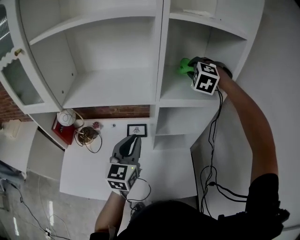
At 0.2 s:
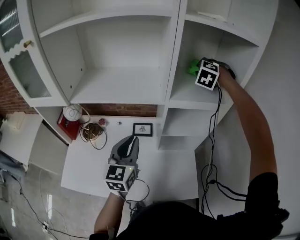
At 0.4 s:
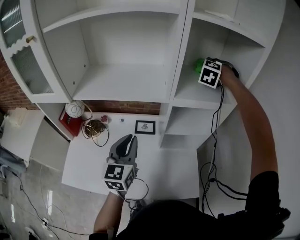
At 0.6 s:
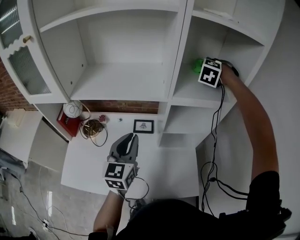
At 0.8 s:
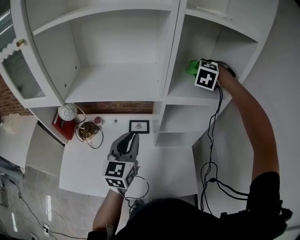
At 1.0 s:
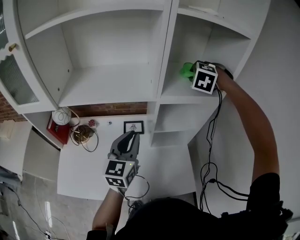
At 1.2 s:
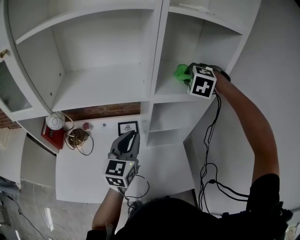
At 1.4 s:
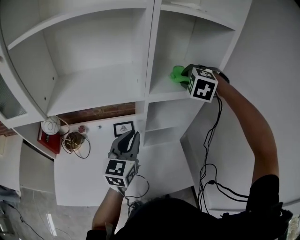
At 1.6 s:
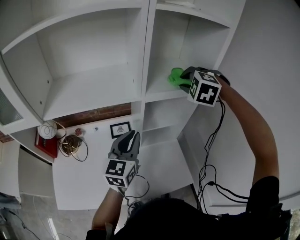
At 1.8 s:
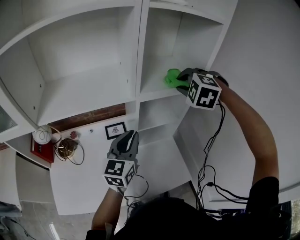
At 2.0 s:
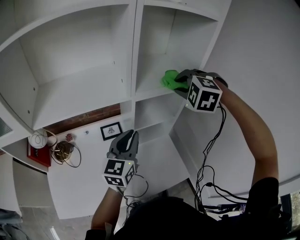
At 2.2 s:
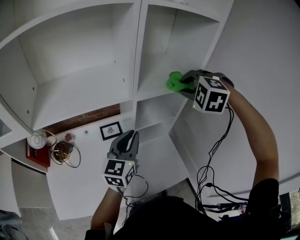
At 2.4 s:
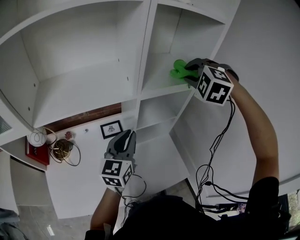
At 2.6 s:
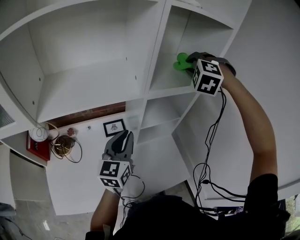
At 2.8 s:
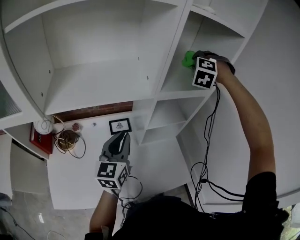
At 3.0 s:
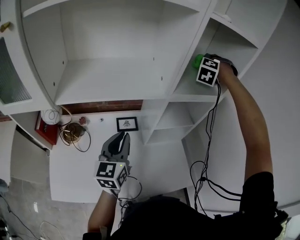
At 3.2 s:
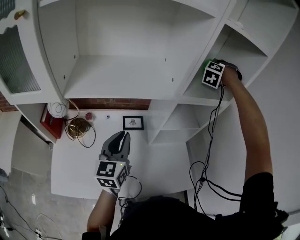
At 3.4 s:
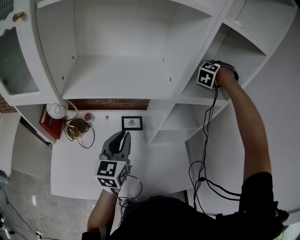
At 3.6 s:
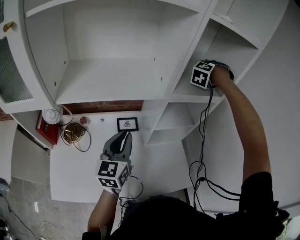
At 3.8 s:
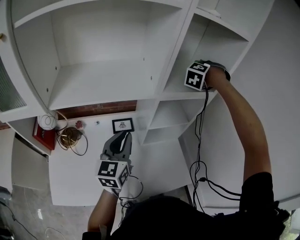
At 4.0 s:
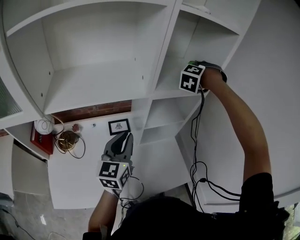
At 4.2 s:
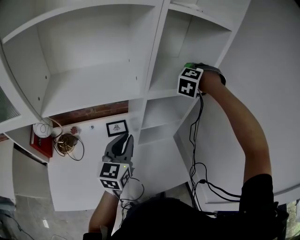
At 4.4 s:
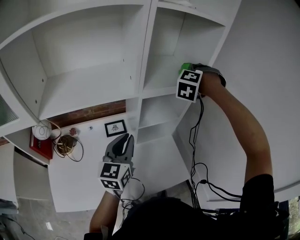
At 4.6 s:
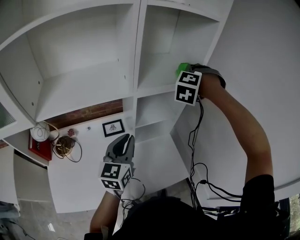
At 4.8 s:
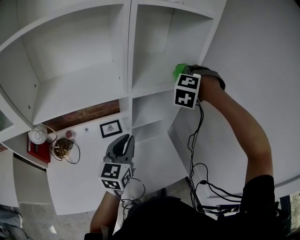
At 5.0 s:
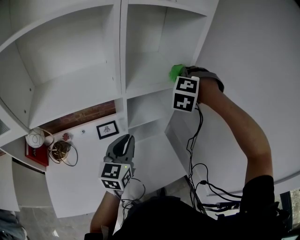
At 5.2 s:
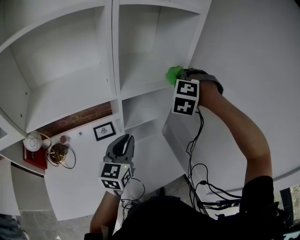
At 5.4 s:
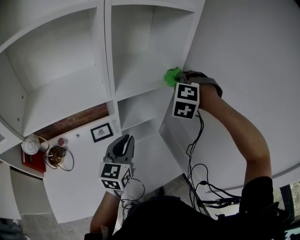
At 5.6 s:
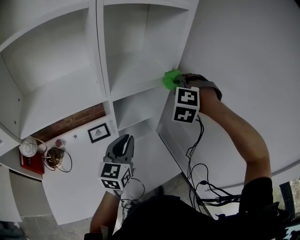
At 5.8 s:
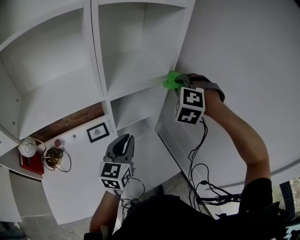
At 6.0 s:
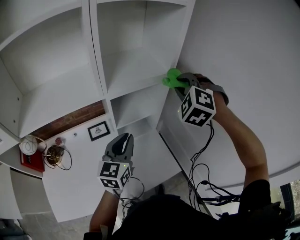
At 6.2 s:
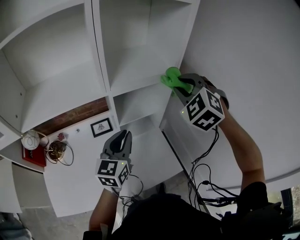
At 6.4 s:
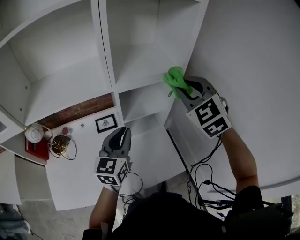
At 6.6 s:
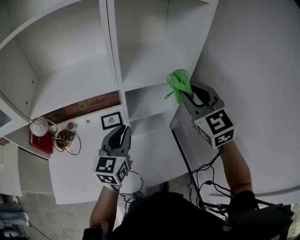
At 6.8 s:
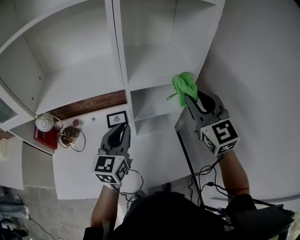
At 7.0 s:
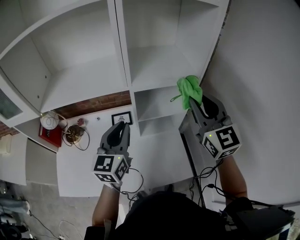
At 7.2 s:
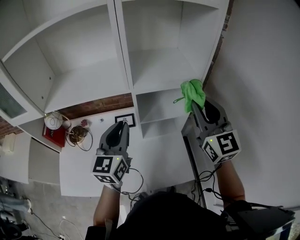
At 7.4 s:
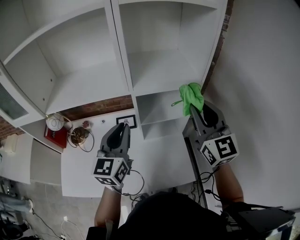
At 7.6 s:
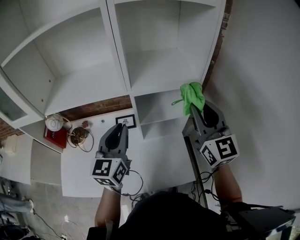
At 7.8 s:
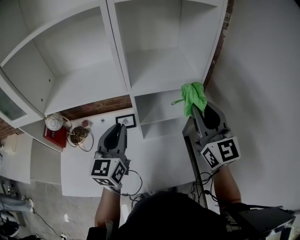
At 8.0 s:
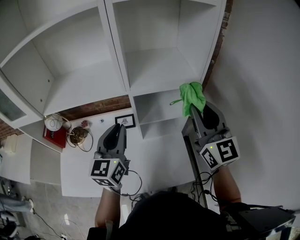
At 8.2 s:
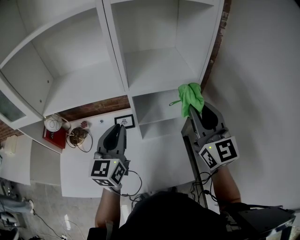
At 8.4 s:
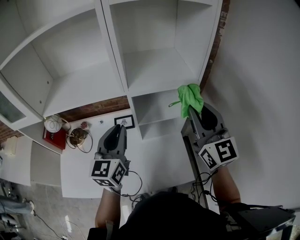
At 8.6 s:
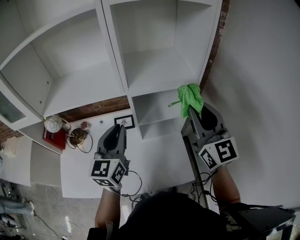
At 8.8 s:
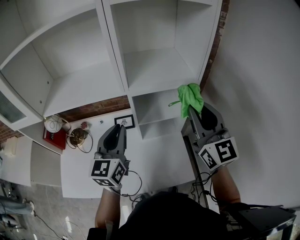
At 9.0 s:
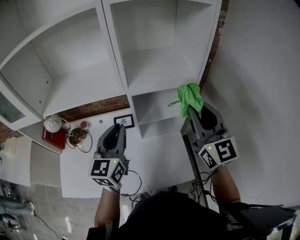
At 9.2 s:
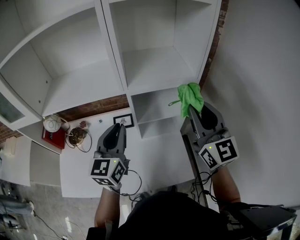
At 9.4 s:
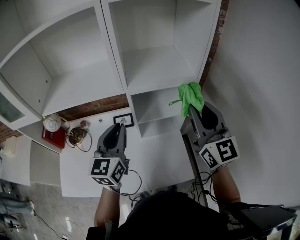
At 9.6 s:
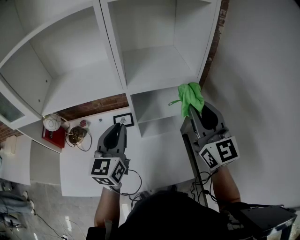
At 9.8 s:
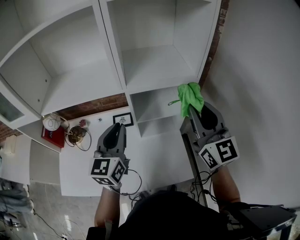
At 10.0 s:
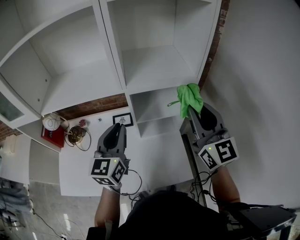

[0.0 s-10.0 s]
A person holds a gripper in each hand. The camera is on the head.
0.0 to 1.4 s: The right gripper moves backward, approximately 5 cm.
1.4 to 2.8 s: The left gripper is displaced to the left by roughly 5 cm; the right gripper is displaced forward by about 5 cm, and swivels roughly 20 degrees.
2.8 to 4.2 s: The right gripper heads to the right, covering some 5 cm, and travels forward and back again, roughly 5 cm each way.
4.2 to 5.8 s: The right gripper is displaced to the right and backward by approximately 10 cm. Meanwhile the left gripper shifts approximately 10 cm to the right and forward.
5.8 to 7.2 s: The left gripper changes place by some 10 cm, and changes its angle by roughly 20 degrees. Meanwhile the right gripper moves approximately 10 cm, and angles its fingers upward, by approximately 40 degrees.
7.2 to 8.6 s: The grippers move only a little.
8.6 to 10.0 s: Both grippers stay about where they are.

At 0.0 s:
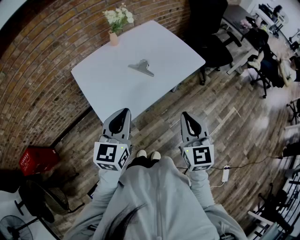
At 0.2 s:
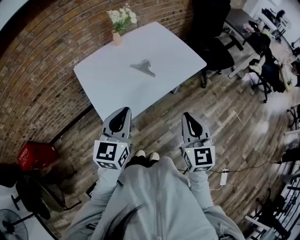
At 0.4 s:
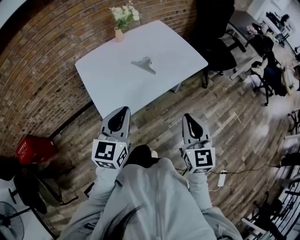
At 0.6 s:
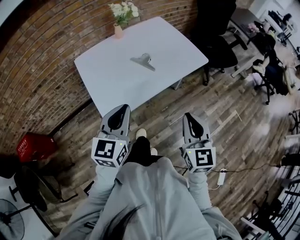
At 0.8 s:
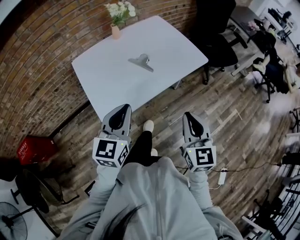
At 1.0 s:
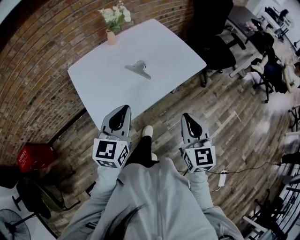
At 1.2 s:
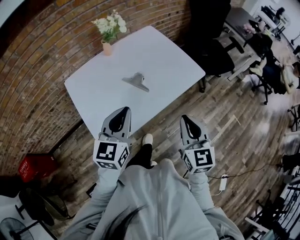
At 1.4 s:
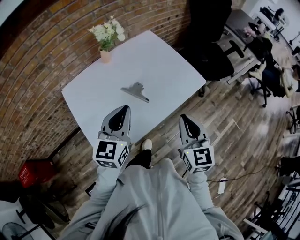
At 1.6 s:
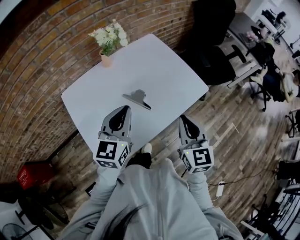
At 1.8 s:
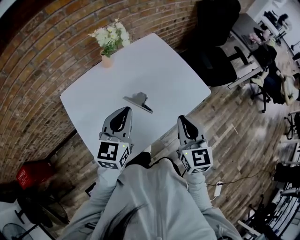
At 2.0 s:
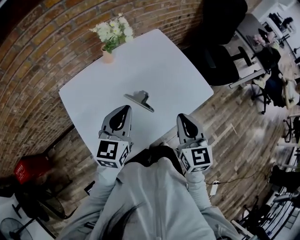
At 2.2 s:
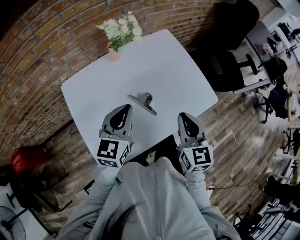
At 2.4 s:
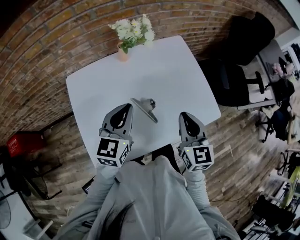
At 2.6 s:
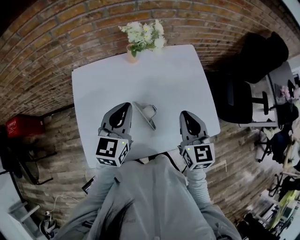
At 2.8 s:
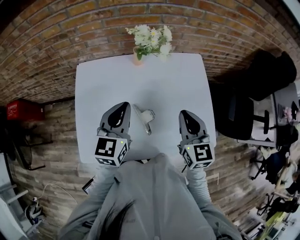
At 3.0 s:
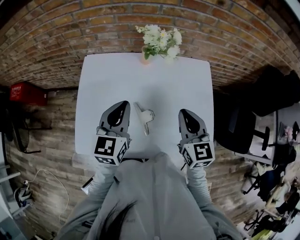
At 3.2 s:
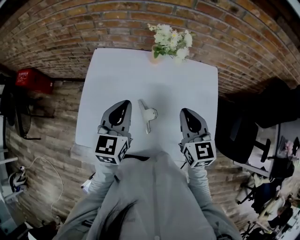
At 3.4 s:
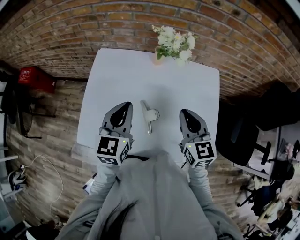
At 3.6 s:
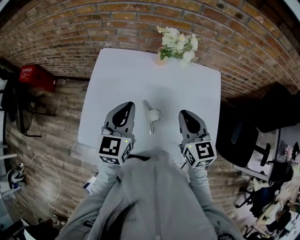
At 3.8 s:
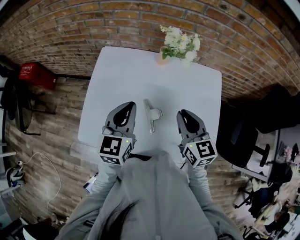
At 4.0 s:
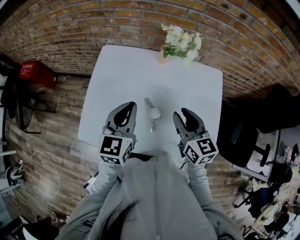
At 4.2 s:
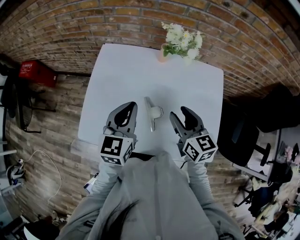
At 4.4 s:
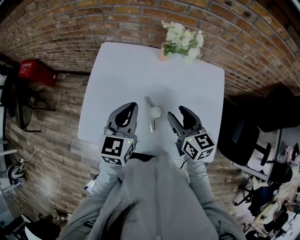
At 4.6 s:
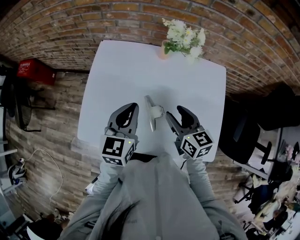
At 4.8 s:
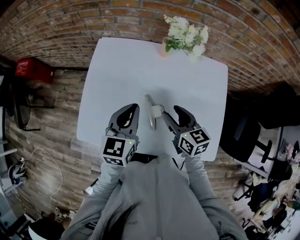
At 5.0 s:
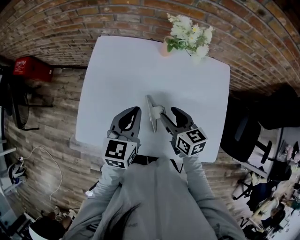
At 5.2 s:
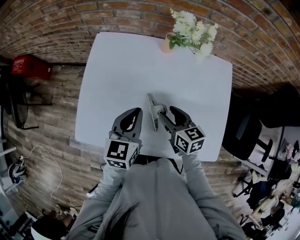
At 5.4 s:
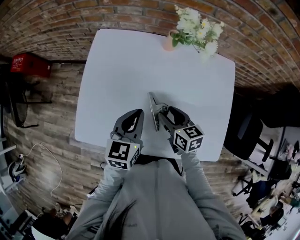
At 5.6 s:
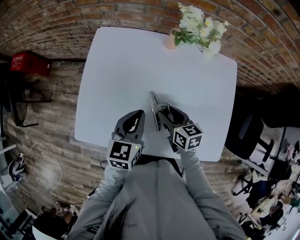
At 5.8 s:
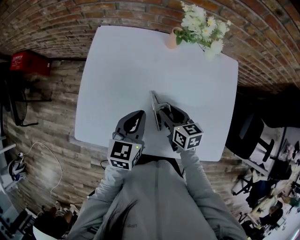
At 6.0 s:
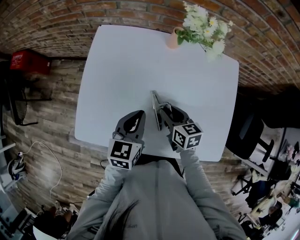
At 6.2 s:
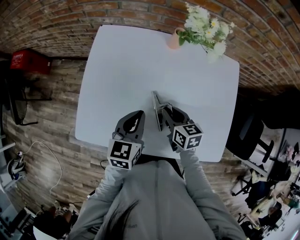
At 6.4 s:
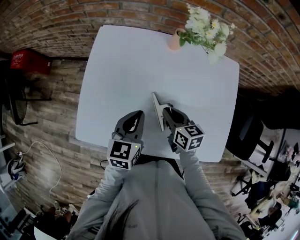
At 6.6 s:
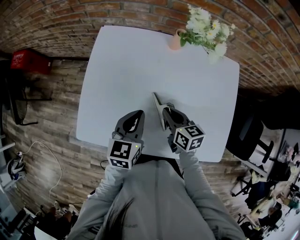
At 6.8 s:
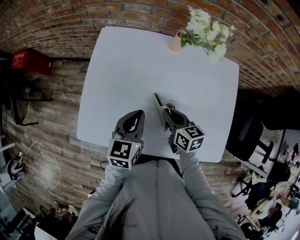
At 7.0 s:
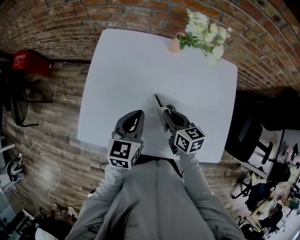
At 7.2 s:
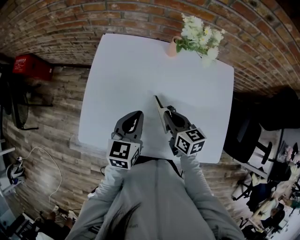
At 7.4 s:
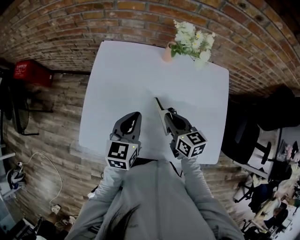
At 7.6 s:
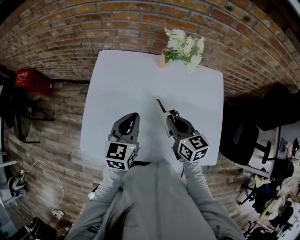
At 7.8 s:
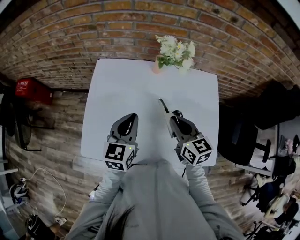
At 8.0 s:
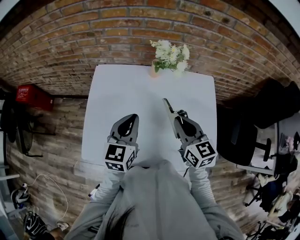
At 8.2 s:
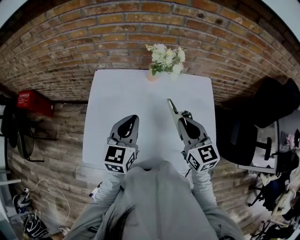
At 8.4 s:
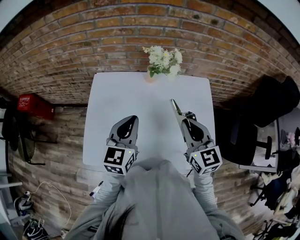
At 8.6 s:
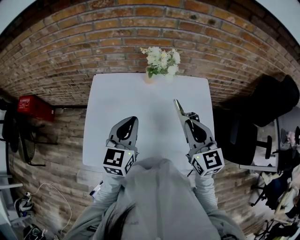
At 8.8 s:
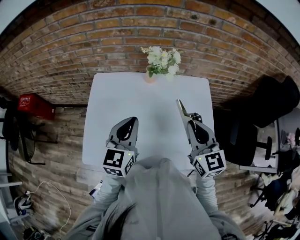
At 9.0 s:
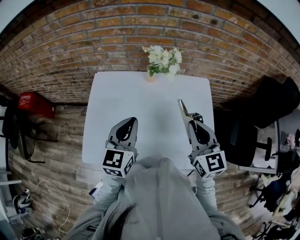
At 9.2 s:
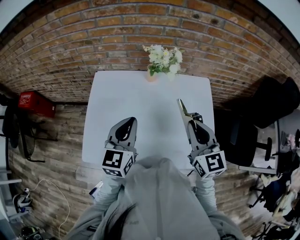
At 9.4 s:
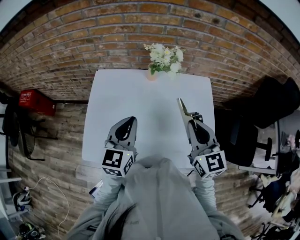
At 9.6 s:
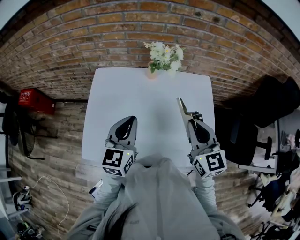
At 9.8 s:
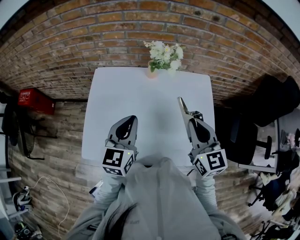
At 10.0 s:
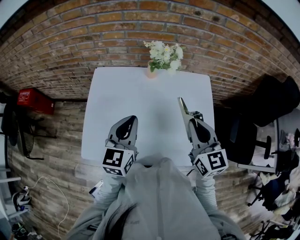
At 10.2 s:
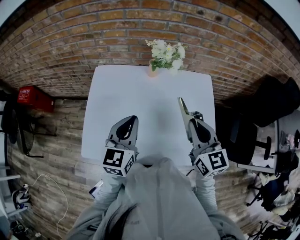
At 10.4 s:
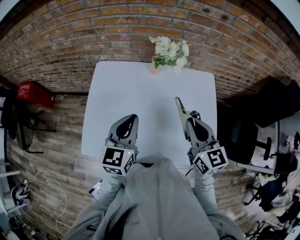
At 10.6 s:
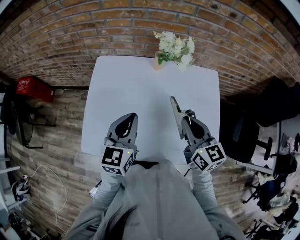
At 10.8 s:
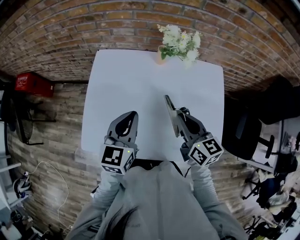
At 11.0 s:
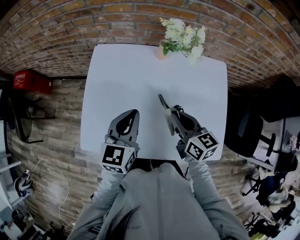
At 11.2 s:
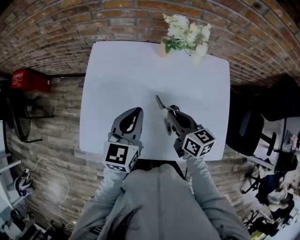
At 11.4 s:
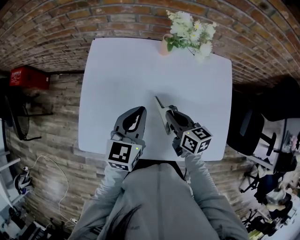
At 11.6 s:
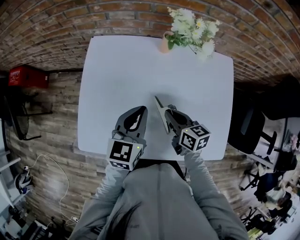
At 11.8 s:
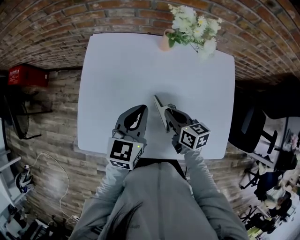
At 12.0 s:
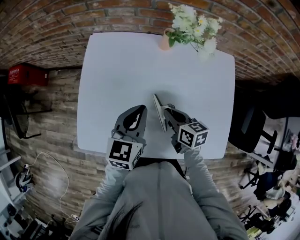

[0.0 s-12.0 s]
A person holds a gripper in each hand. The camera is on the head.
0.0 to 1.6 s: The grippers both shift forward by some 20 cm.
1.6 to 3.0 s: The right gripper changes place by about 25 cm, and changes its angle by roughly 40 degrees. The left gripper moves some 10 cm, and rotates about 40 degrees.
3.0 to 4.4 s: The right gripper shifts roughly 5 cm to the left, turns by roughly 20 degrees, and opens.
4.4 to 6.0 s: The grippers both shift downward by some 15 cm.
6.0 to 7.6 s: The left gripper is displaced upward by roughly 5 cm, while the right gripper is displaced upward by some 10 cm, and closes up.
7.6 to 9.0 s: The left gripper travels upward by about 10 cm. The right gripper is displaced upward and to the right by roughly 15 cm, and swivels approximately 30 degrees.
9.0 to 10.4 s: The grippers make only small movements.
10.4 to 12.0 s: The left gripper goes about 10 cm downward, while the right gripper shifts about 25 cm downward, and changes its angle by some 40 degrees.

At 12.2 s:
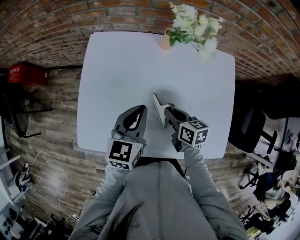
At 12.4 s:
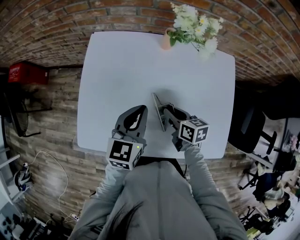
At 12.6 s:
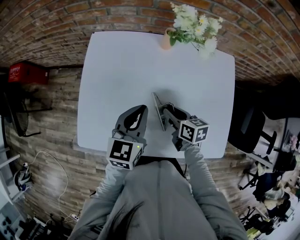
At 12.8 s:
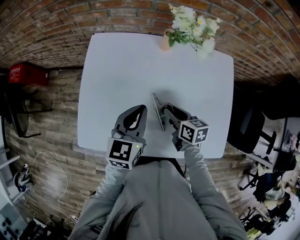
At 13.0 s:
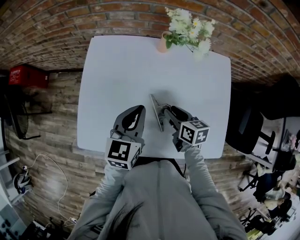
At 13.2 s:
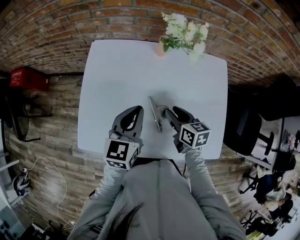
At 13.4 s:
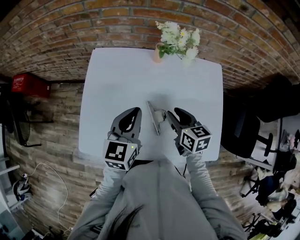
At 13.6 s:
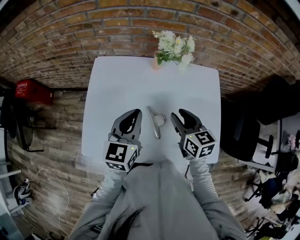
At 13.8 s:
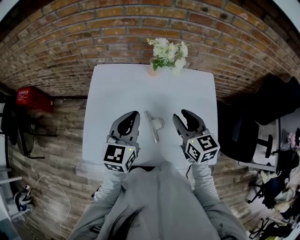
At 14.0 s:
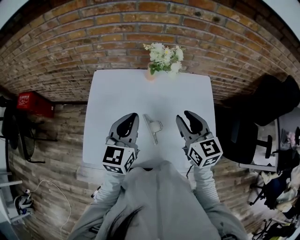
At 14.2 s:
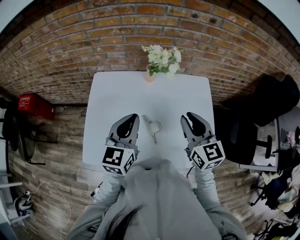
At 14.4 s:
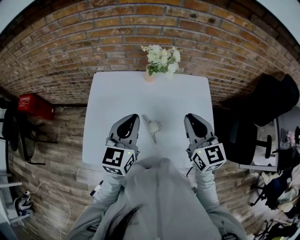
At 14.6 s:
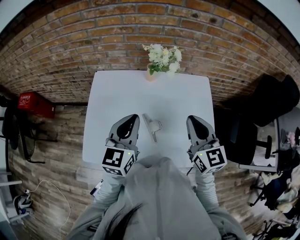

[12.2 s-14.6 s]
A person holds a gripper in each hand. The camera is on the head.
12.2 to 13.4 s: The left gripper shifts approximately 5 cm upward. The right gripper travels upward by approximately 10 cm, and opens its fingers.
13.4 to 14.6 s: The left gripper goes some 10 cm upward. The right gripper moves upward, about 20 cm, changes its angle by some 30 degrees, and closes its fingers.
